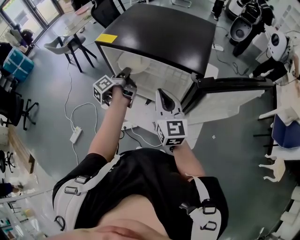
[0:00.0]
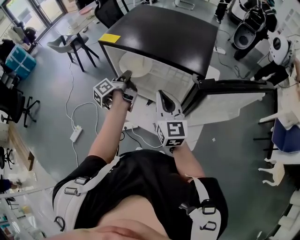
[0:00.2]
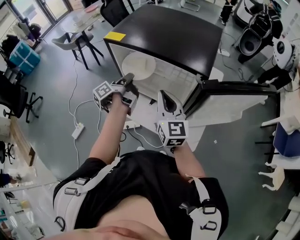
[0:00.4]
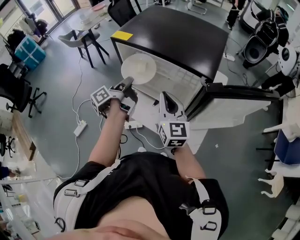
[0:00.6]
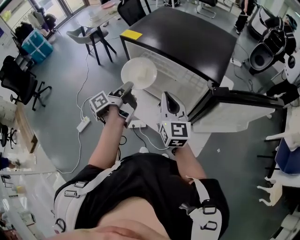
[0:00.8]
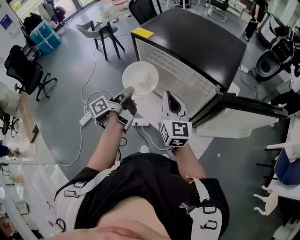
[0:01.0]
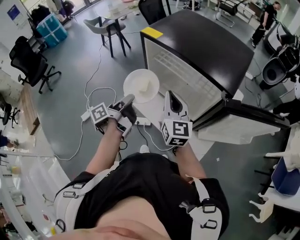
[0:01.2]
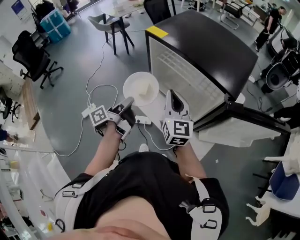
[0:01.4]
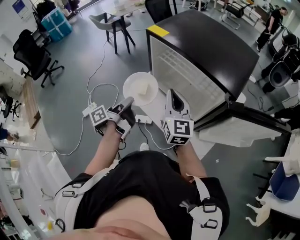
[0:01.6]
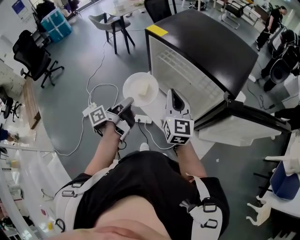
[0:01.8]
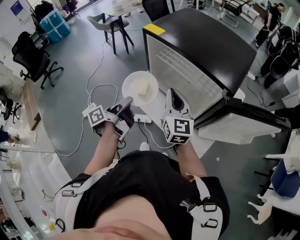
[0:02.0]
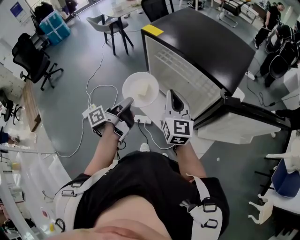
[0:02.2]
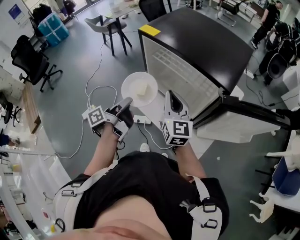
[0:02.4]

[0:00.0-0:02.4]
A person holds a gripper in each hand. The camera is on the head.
0:00.0 to 0:01.2: The right gripper goes some 5 cm to the left, while the left gripper heads backward and to the left, covering approximately 20 cm.
0:01.2 to 0:02.4: The grippers stay close to where they were, moving slightly.

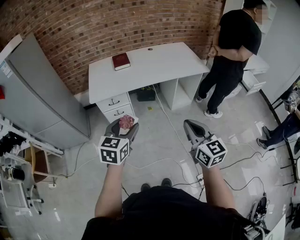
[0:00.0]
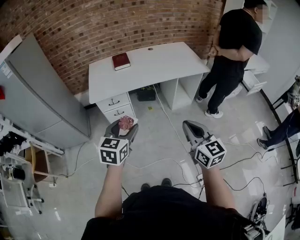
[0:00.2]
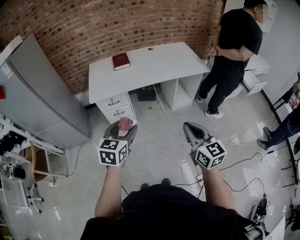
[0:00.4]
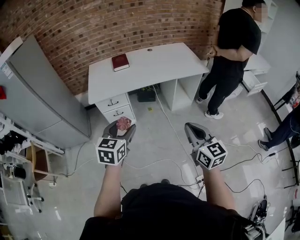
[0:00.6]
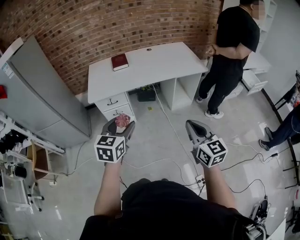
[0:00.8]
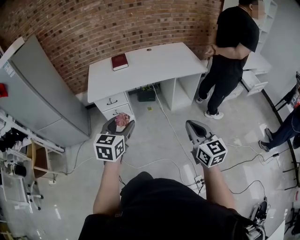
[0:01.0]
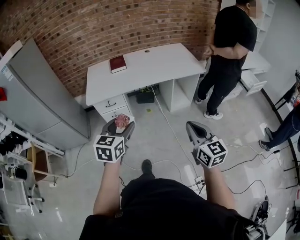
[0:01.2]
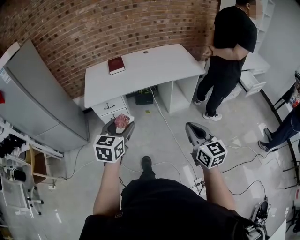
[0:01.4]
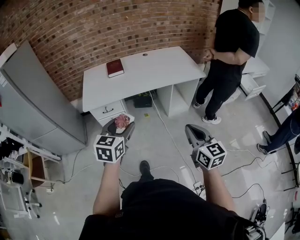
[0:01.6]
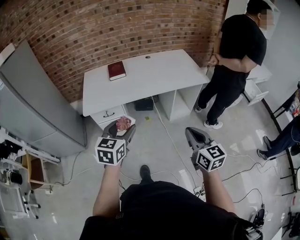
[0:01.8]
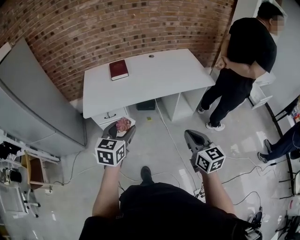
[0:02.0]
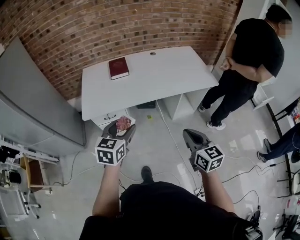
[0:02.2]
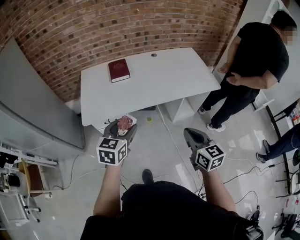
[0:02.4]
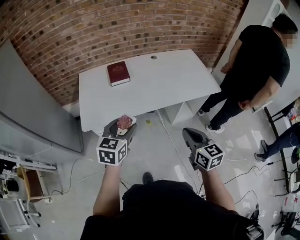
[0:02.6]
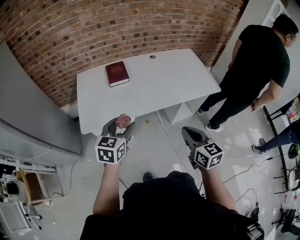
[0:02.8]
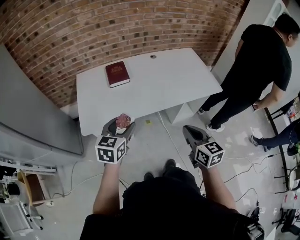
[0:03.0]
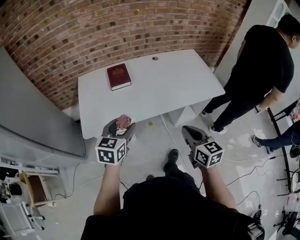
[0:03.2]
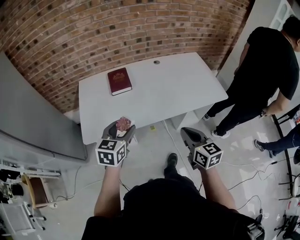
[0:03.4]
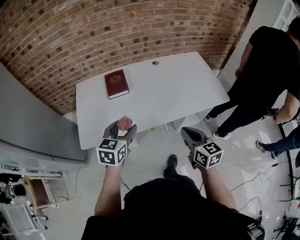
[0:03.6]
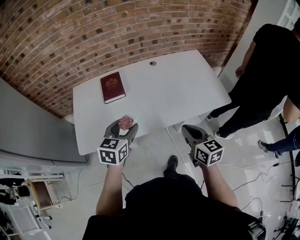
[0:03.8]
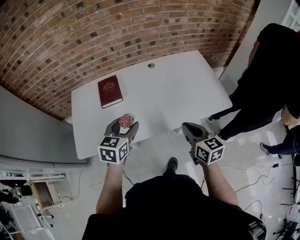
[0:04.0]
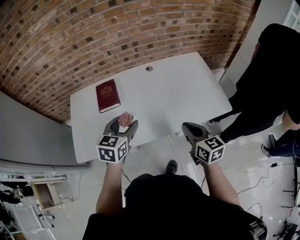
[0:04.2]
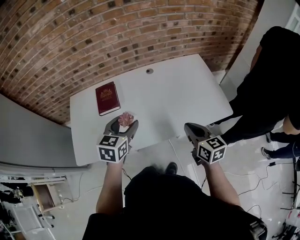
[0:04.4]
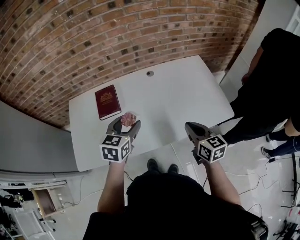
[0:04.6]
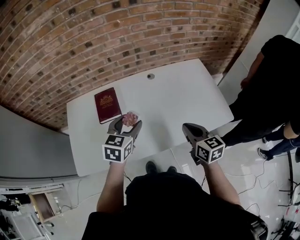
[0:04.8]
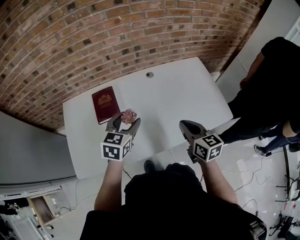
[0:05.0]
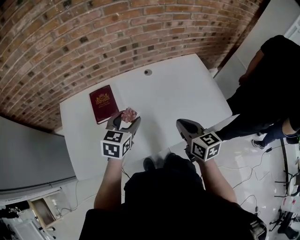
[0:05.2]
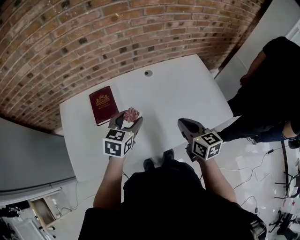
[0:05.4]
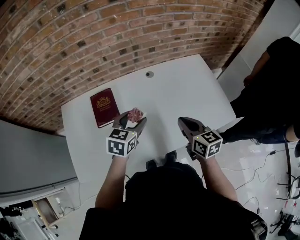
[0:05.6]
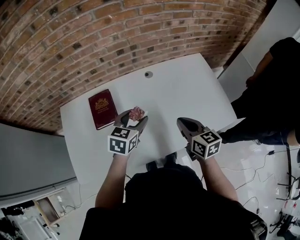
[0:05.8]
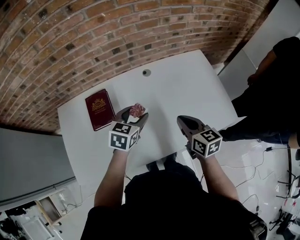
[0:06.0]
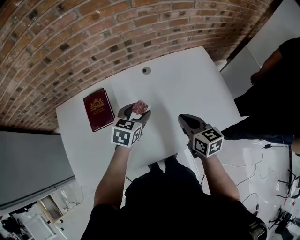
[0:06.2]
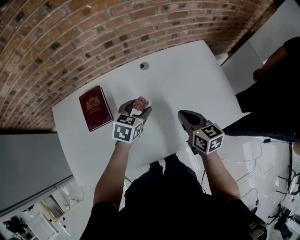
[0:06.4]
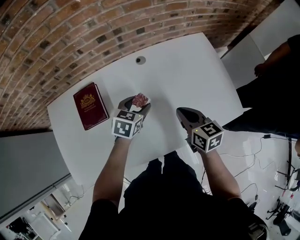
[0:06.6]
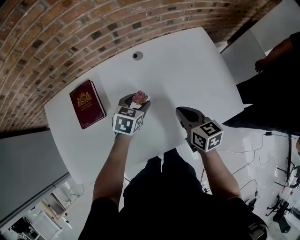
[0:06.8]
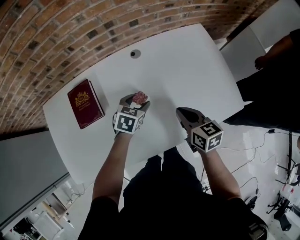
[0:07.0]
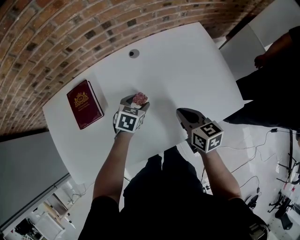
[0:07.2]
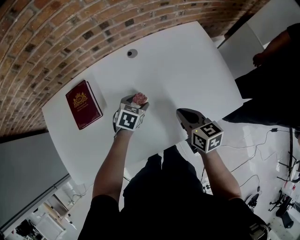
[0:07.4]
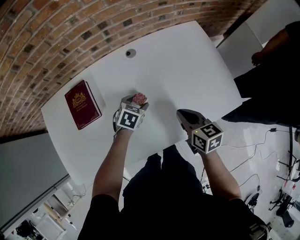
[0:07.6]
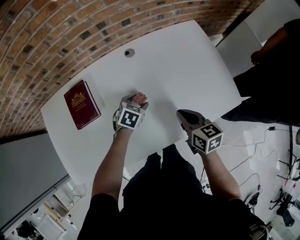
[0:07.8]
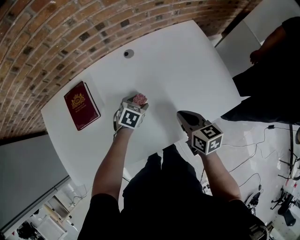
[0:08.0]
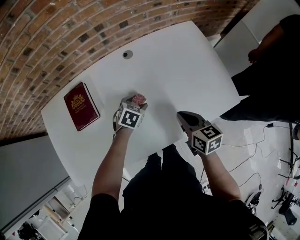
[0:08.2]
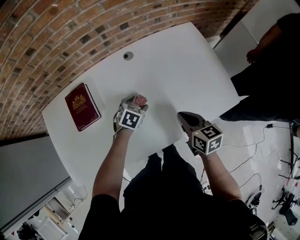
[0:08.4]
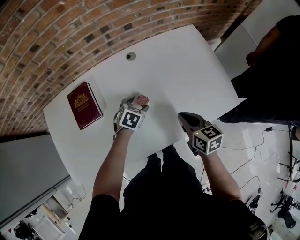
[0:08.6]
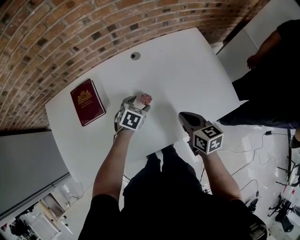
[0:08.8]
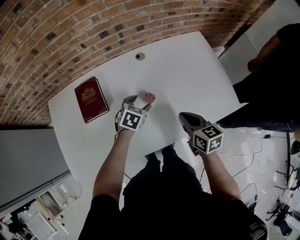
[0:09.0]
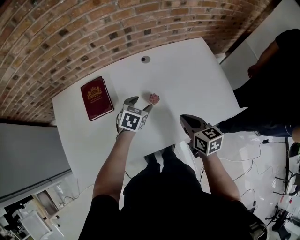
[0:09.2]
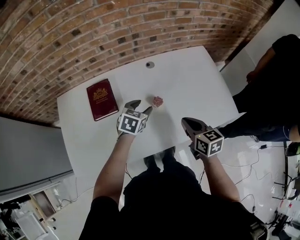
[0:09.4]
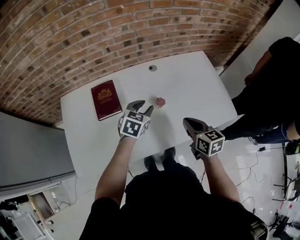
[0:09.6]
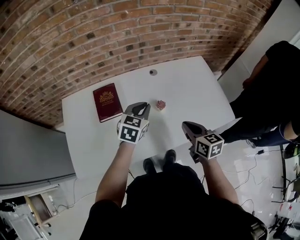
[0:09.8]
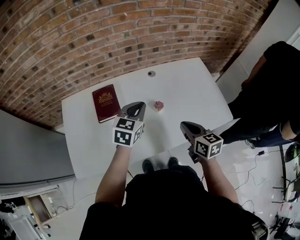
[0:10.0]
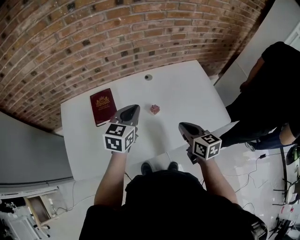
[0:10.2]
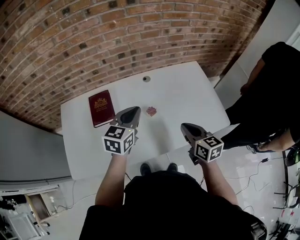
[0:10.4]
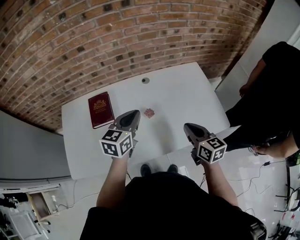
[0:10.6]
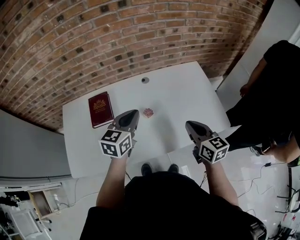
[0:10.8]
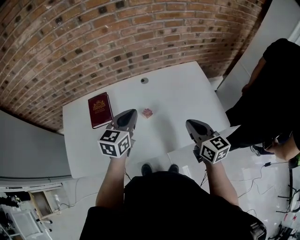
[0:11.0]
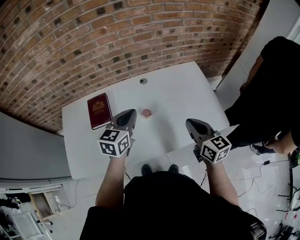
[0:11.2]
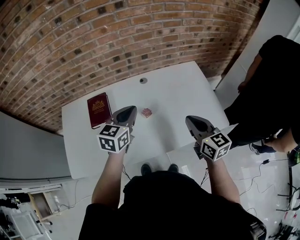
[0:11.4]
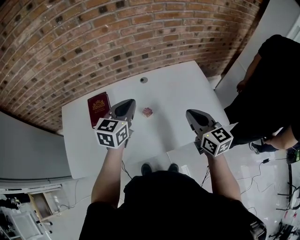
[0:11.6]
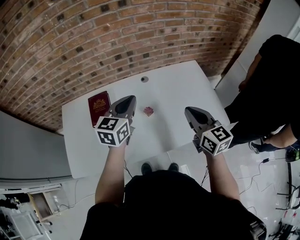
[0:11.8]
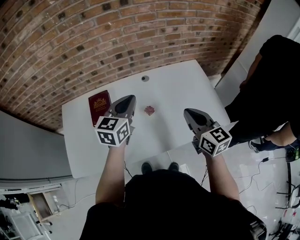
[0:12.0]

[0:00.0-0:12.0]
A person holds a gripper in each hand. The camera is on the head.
0:00.0 to 0:01.6: The left gripper moves forward and to the right, approximately 10 cm. The right gripper moves to the right, approximately 10 cm.
0:01.6 to 0:03.0: The two grippers go some 30 cm forward and to the left.
0:03.0 to 0:04.4: Both grippers move forward and to the right, roughly 30 cm.
0:04.4 to 0:06.0: The right gripper travels forward by some 15 cm, while the left gripper moves forward and downward, about 20 cm.
0:06.0 to 0:07.6: The left gripper is displaced downward by some 20 cm, and turns by about 20 degrees. The right gripper heads downward, covering some 10 cm.
0:07.6 to 0:09.0: The left gripper changes place by some 5 cm.
0:09.0 to 0:10.4: The right gripper moves upward, roughly 10 cm. The left gripper goes roughly 25 cm upward, points its fingers roughly 30 degrees further upward, and closes.
0:10.4 to 0:12.0: The right gripper is displaced upward by some 10 cm. The left gripper ends up some 5 cm from where it was.

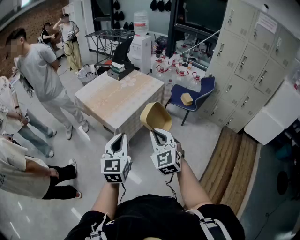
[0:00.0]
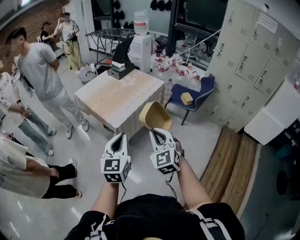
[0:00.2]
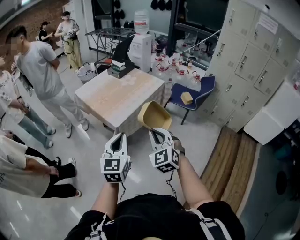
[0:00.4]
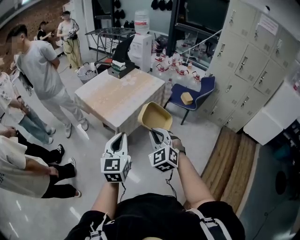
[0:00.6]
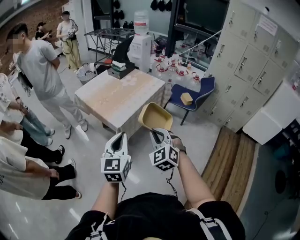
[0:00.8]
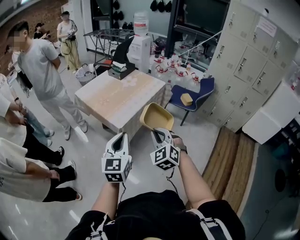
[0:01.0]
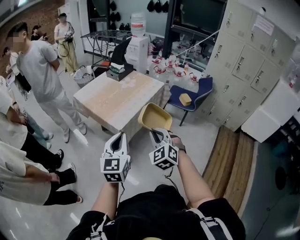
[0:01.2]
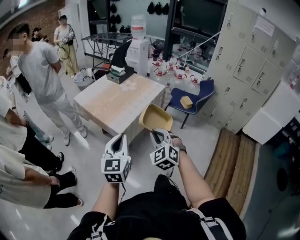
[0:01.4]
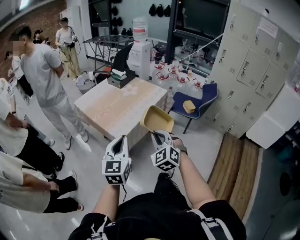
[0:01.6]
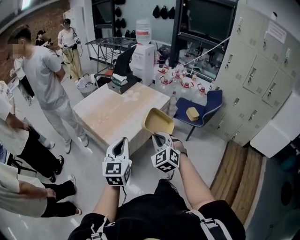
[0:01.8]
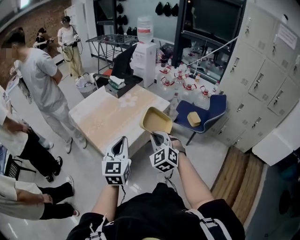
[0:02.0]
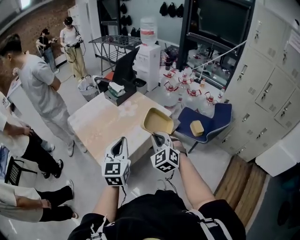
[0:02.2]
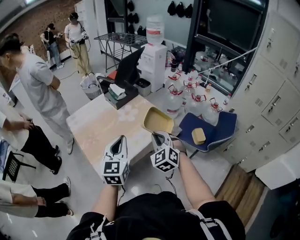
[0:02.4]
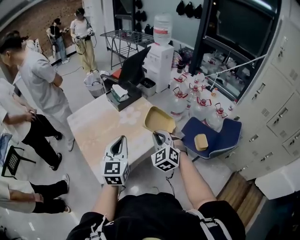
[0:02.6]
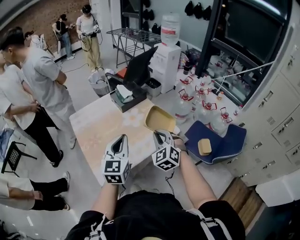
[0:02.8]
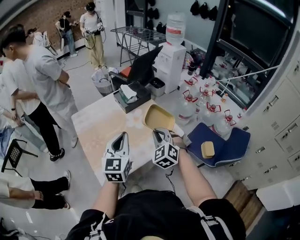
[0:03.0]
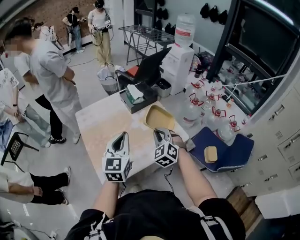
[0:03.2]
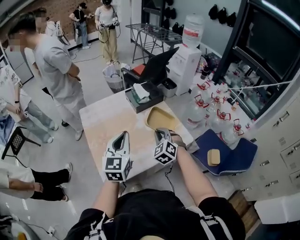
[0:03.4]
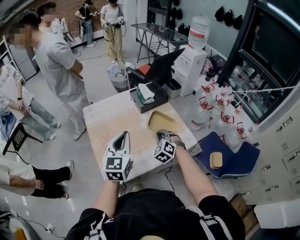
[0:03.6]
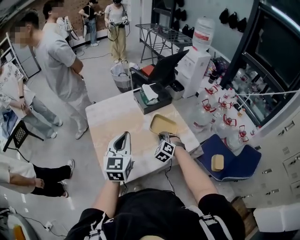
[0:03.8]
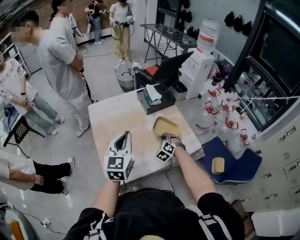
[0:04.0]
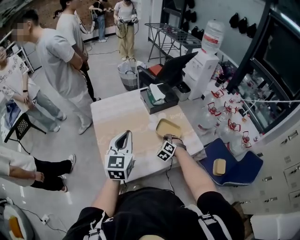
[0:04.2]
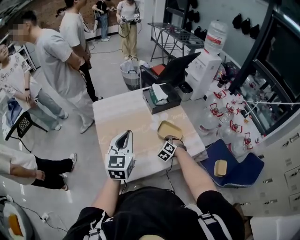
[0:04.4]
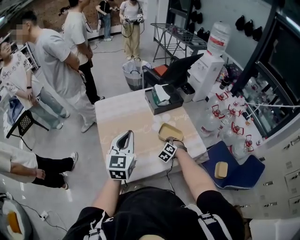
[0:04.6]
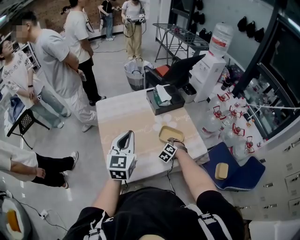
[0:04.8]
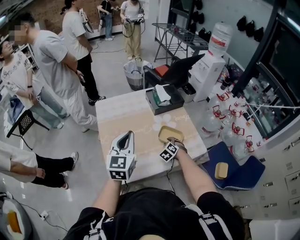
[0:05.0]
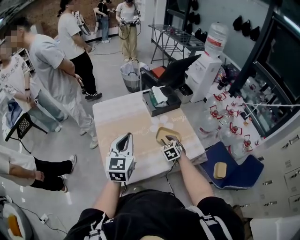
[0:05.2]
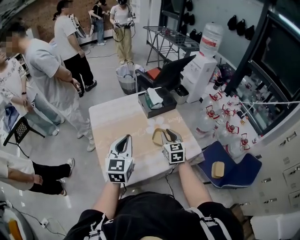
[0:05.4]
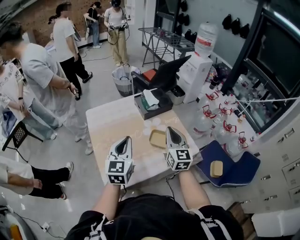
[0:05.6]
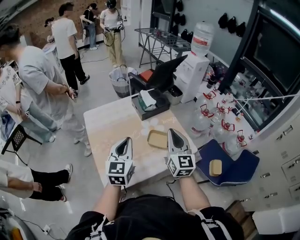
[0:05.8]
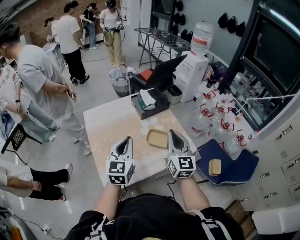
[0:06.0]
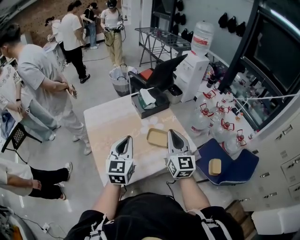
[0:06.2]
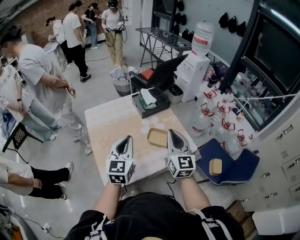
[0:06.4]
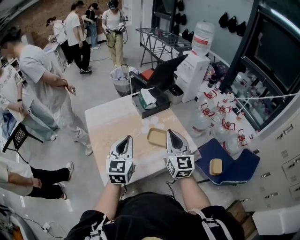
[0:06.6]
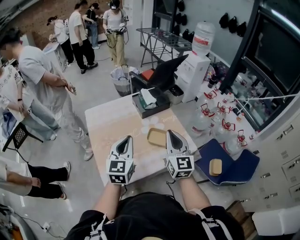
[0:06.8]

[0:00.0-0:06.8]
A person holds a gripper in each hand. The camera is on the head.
0:00.0 to 0:01.4: Both grippers move to the left, approximately 5 cm.
0:01.4 to 0:02.8: Both grippers are carried forward, approximately 60 cm.
0:02.8 to 0:04.0: The right gripper goes about 25 cm downward, forward and to the left, and turns by some 20 degrees. The left gripper shifts about 15 cm to the left and forward.
0:04.0 to 0:05.4: The right gripper heads upward, covering about 10 cm, and rotates around the line of its fingers by approximately 50 degrees, clockwise from behind.
0:05.4 to 0:06.8: The right gripper shifts some 15 cm upward and backward, swivels about 20 degrees, and closes.

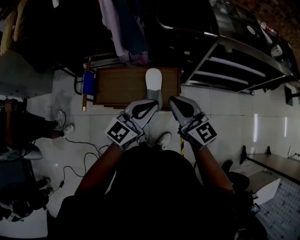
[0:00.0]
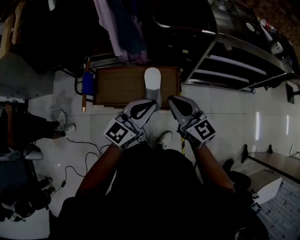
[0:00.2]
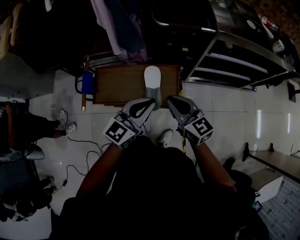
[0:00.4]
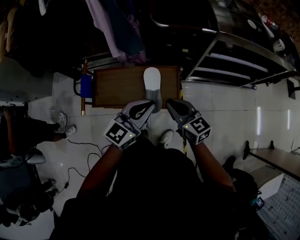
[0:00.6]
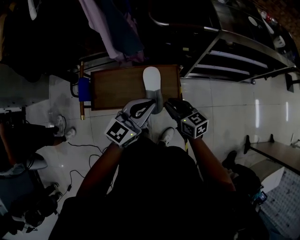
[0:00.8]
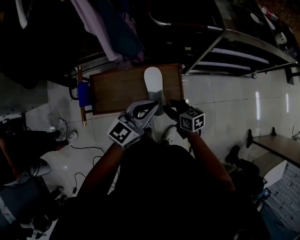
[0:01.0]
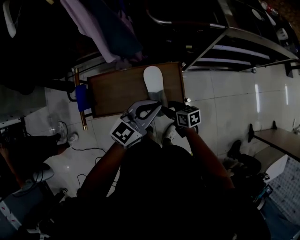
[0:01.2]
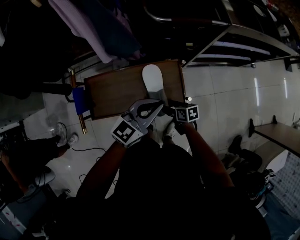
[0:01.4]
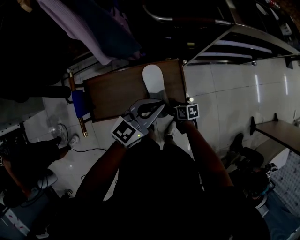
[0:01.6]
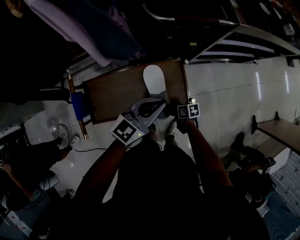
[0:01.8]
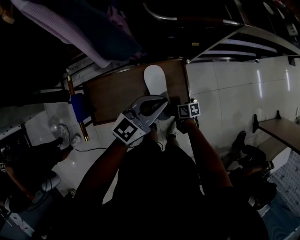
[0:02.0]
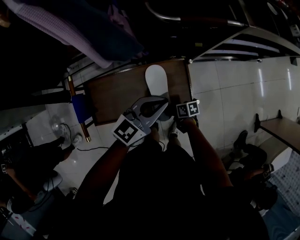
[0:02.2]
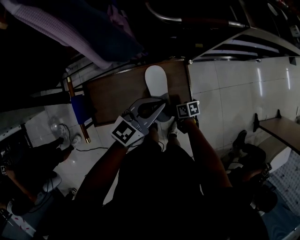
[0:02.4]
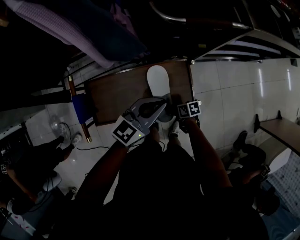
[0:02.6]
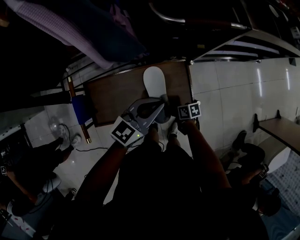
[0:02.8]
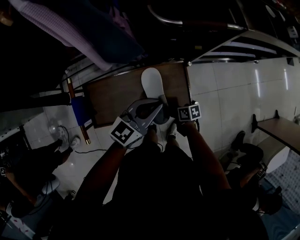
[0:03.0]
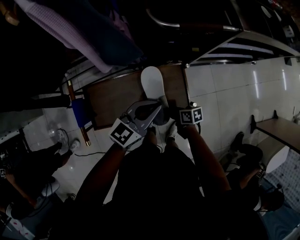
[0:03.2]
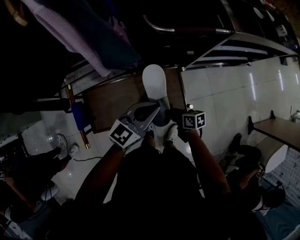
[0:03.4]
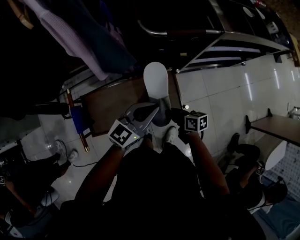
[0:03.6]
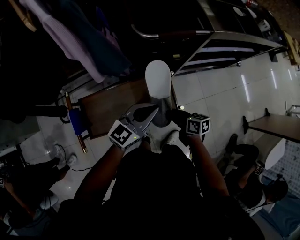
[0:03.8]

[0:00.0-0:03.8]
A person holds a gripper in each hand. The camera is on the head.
0:00.0 to 0:01.2: The left gripper heads downward and forward, covering approximately 10 cm. Meanwhile the right gripper shifts some 30 cm downward, tilts its fingers roughly 30 degrees downward, and opens.
0:01.2 to 0:02.6: The left gripper changes place by roughly 10 cm. Meanwhile the right gripper travels downward by approximately 15 cm, and swivels about 20 degrees.
0:02.6 to 0:03.8: The right gripper is displaced upward by approximately 20 cm, swivels some 30 degrees, and closes, while the left gripper heads upward, covering roughly 5 cm.
